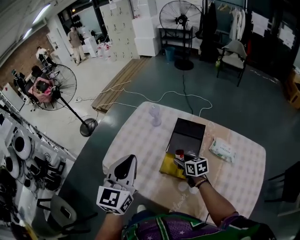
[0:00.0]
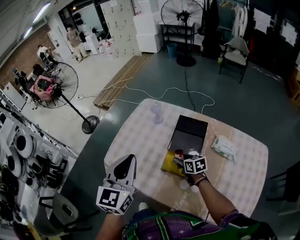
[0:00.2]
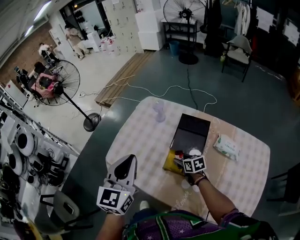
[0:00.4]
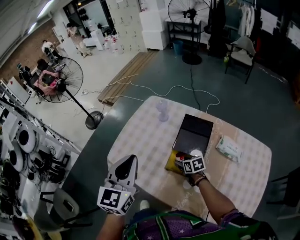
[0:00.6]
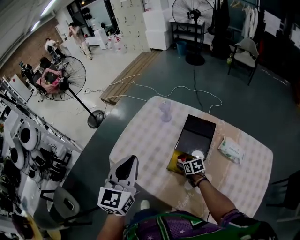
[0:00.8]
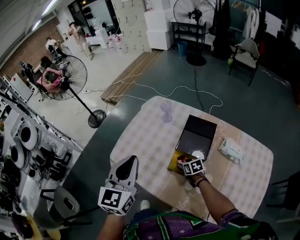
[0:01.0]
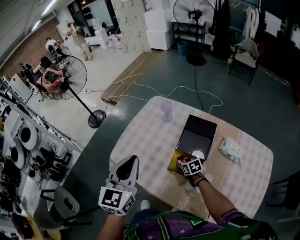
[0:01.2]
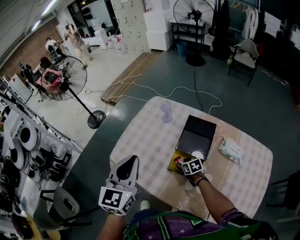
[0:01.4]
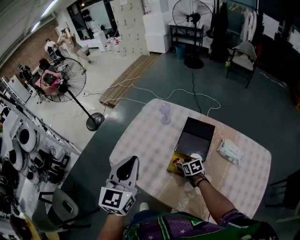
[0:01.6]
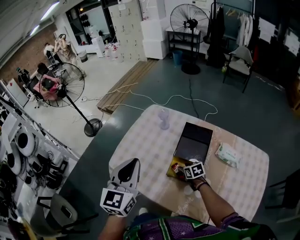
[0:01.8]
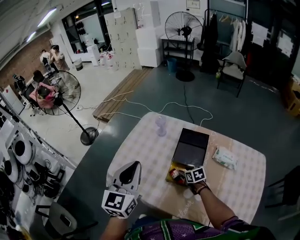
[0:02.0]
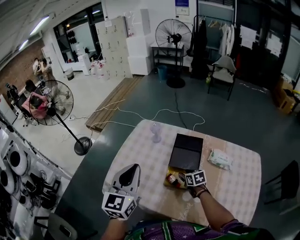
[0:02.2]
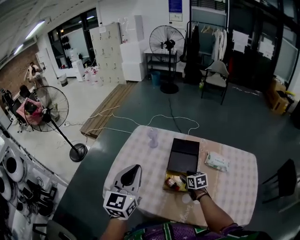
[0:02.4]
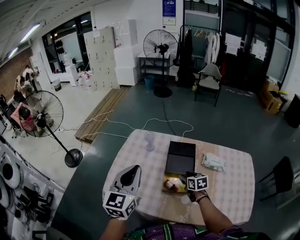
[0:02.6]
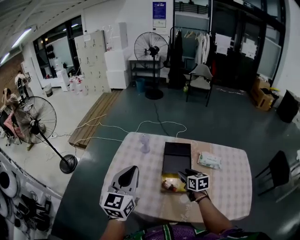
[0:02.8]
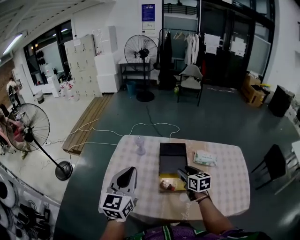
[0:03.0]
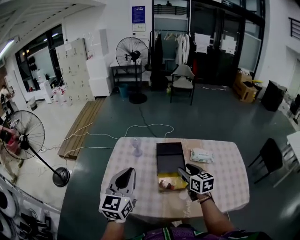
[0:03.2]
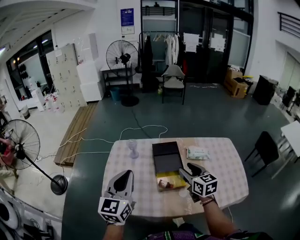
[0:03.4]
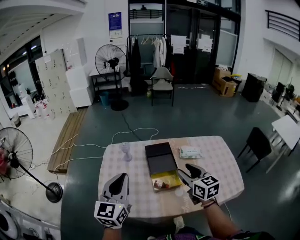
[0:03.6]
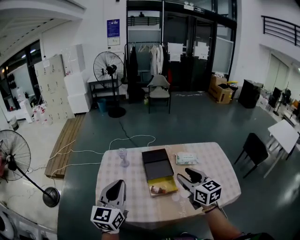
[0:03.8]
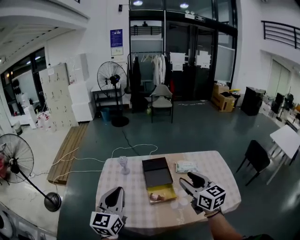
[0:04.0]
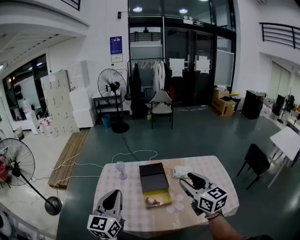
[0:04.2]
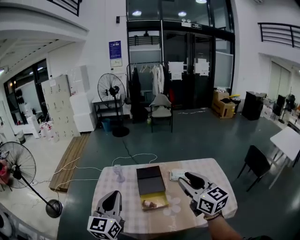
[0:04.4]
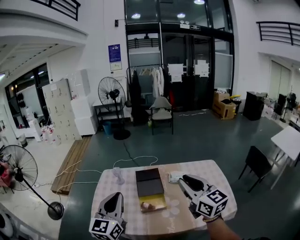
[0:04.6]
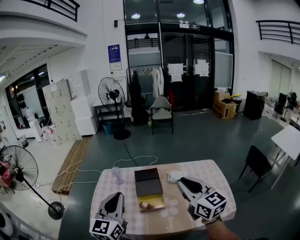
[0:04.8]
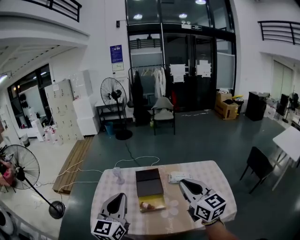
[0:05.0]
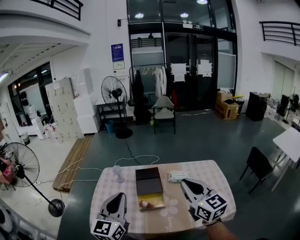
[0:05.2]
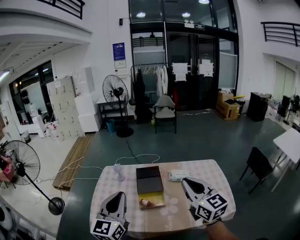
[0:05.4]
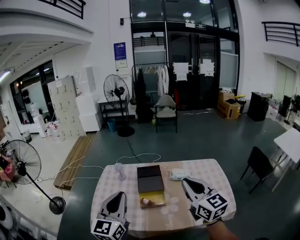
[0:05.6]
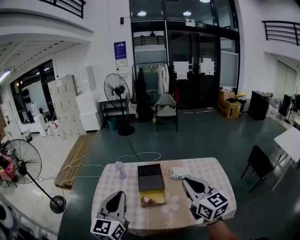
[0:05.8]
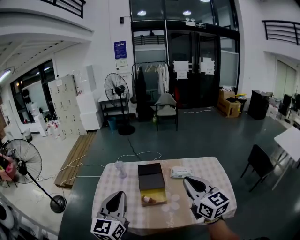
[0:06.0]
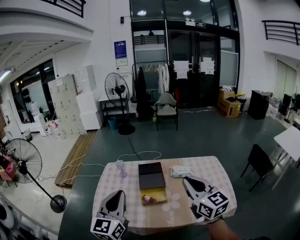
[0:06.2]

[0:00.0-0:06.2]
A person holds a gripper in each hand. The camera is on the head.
0:00.0 to 0:01.6: The right gripper moves downward, some 10 cm.
0:01.6 to 0:03.2: The left gripper ends up approximately 5 cm from where it was, and swivels approximately 30 degrees, while the right gripper heads upward, covering approximately 25 cm, and changes its angle by some 50 degrees.
0:03.2 to 0:04.6: The right gripper is displaced upward, backward and to the right by some 30 cm, swivels roughly 30 degrees, and closes its fingers. The left gripper moves backward, to the right and upward, some 15 cm.
0:04.6 to 0:06.2: The left gripper is displaced backward by some 5 cm.

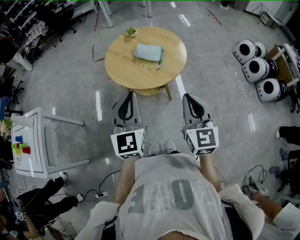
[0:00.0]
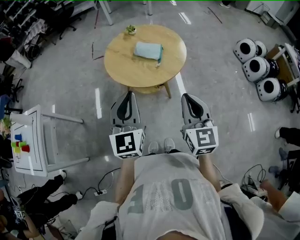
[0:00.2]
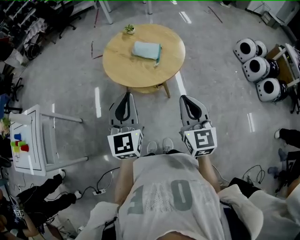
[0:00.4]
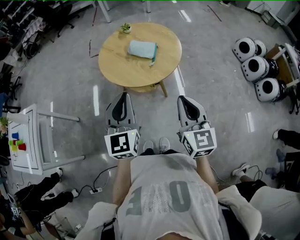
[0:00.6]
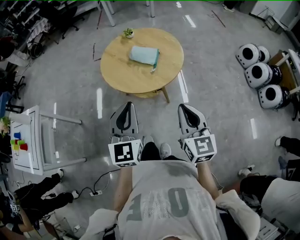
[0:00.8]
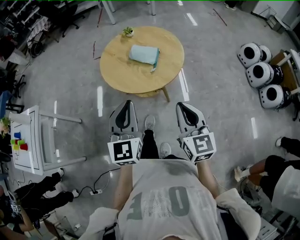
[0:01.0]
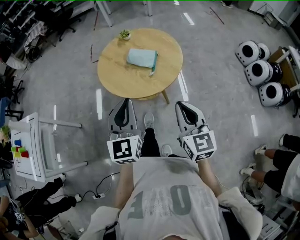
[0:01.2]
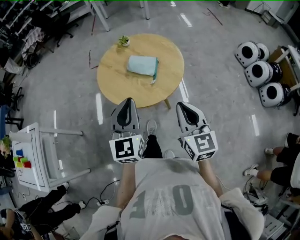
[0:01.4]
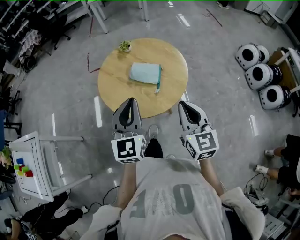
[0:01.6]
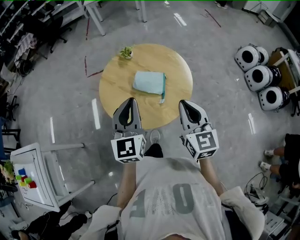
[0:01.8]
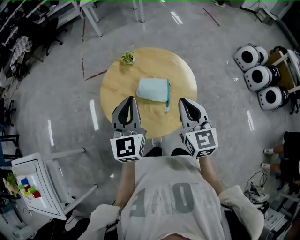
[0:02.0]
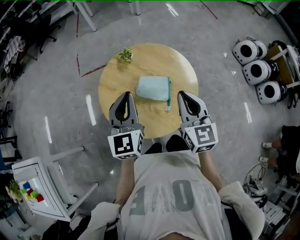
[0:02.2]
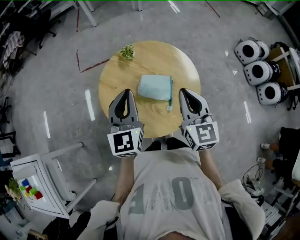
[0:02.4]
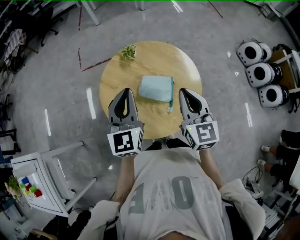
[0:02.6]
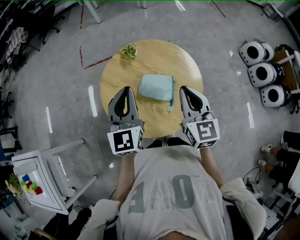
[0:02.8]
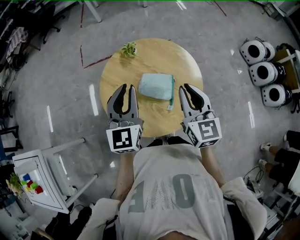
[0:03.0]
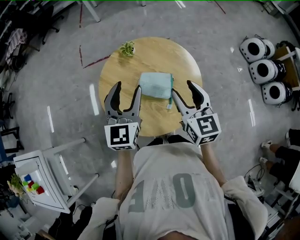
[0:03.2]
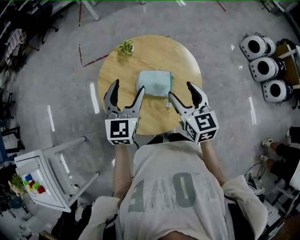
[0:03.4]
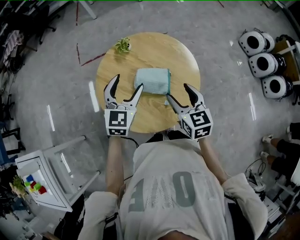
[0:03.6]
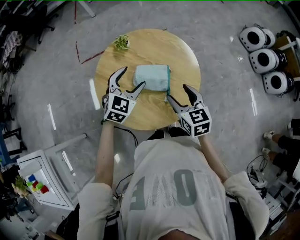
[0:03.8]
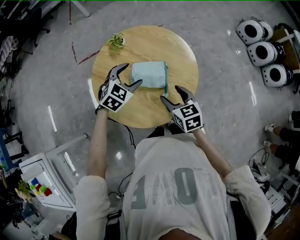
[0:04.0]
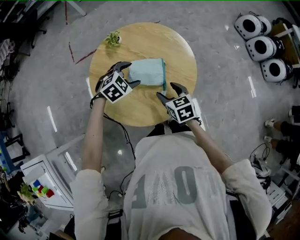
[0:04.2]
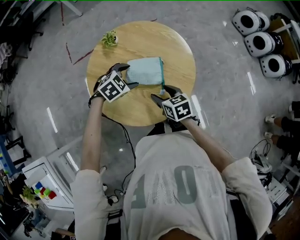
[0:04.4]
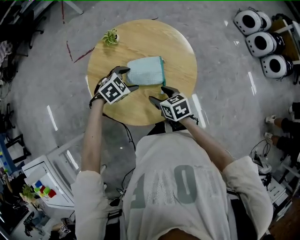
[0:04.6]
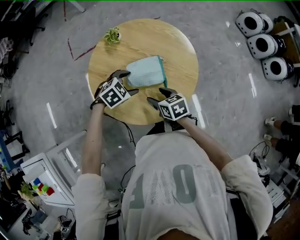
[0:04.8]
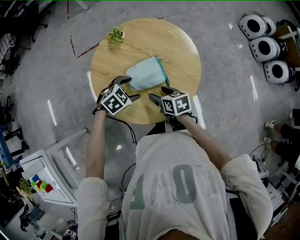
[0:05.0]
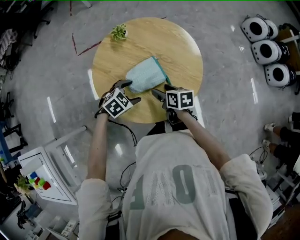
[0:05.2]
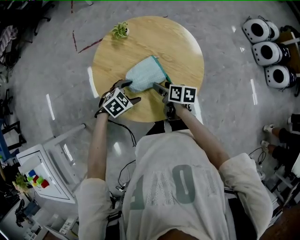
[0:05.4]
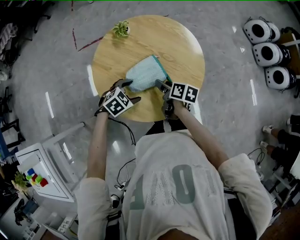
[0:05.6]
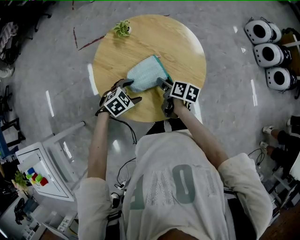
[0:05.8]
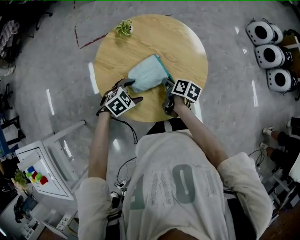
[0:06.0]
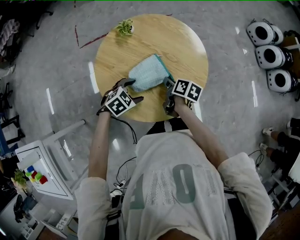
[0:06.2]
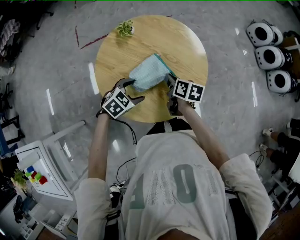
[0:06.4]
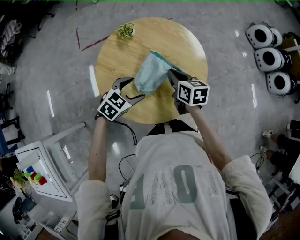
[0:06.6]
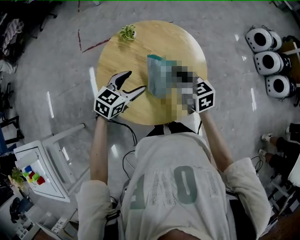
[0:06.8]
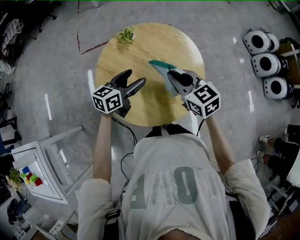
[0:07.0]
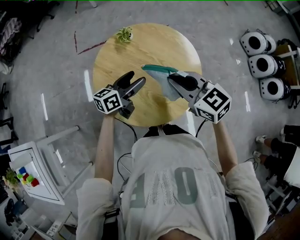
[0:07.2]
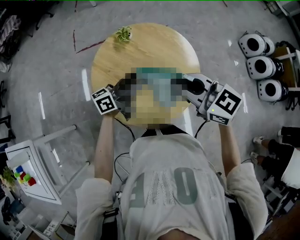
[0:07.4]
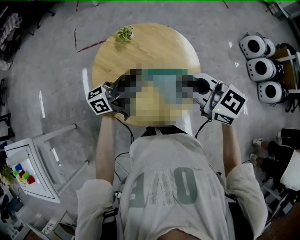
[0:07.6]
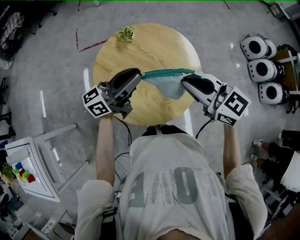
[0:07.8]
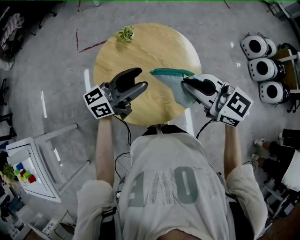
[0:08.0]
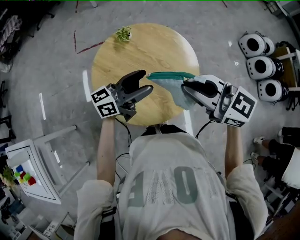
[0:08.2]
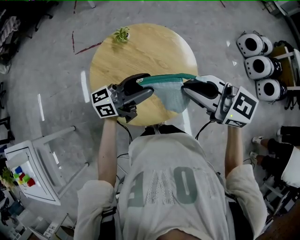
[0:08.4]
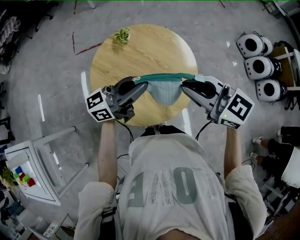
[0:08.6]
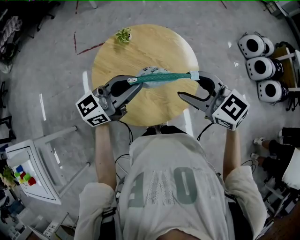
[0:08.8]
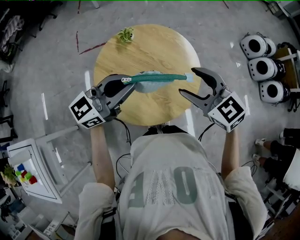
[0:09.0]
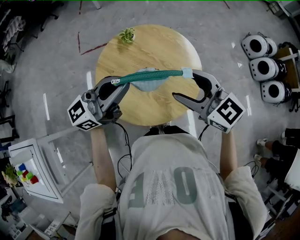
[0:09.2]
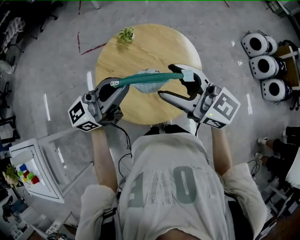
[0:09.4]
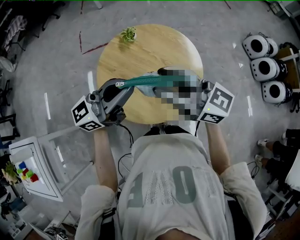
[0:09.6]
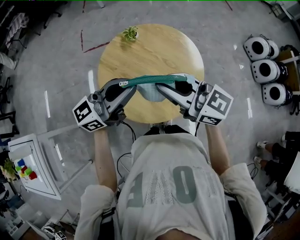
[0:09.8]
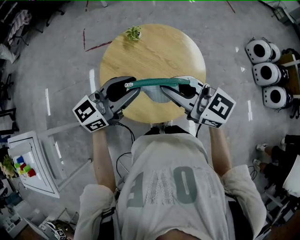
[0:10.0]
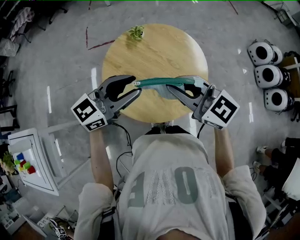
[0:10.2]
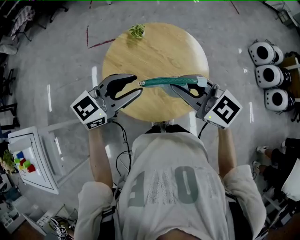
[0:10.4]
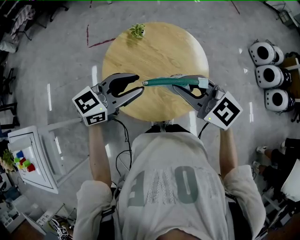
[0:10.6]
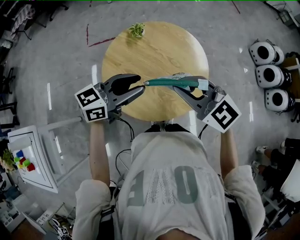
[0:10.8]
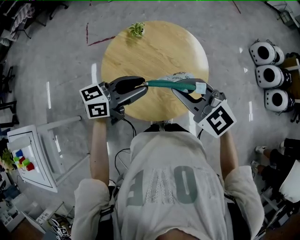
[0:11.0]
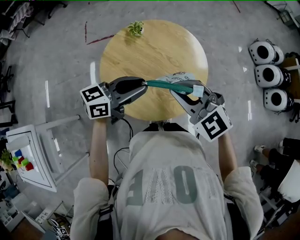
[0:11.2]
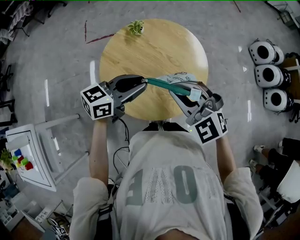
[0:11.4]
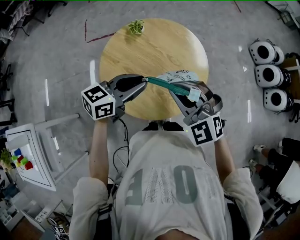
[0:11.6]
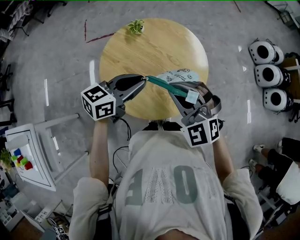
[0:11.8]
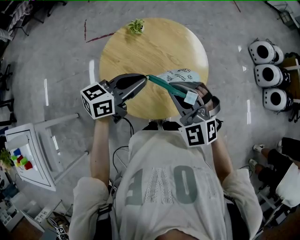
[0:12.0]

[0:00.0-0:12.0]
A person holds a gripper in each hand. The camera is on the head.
0:00.0 to 0:01.6: Both grippers travel together forward, approximately 20 cm.
0:01.6 to 0:03.0: The two grippers go about 20 cm forward.
0:03.0 to 0:04.4: Both grippers move downward, some 25 cm. The right gripper tips its fingers downward by roughly 30 degrees, and opens up. The left gripper tips its fingers downward by about 50 degrees, and opens its fingers.
0:04.4 to 0:06.0: The right gripper shifts about 5 cm downward and forward, rolls clockwise, seen from behind, by about 50 degrees, and closes its fingers. The left gripper heads backward, covering about 10 cm.
0:06.0 to 0:07.6: Both grippers travel together upward, roughly 25 cm. The right gripper rotates around the line of its fingers by approximately 80 degrees, counterclockwise from behind, while the left gripper tips its fingers upward by some 80 degrees.
0:07.6 to 0:09.0: The right gripper opens up. The left gripper travels upward by approximately 5 cm, rotates some 40 degrees, and closes up.
0:09.0 to 0:10.4: The right gripper ends up about 10 cm from where it was, turns by some 20 degrees, and closes its fingers.
0:10.4 to 0:12.0: The left gripper heads downward, covering about 5 cm, and changes its angle by some 20 degrees; the right gripper turns by approximately 40 degrees.

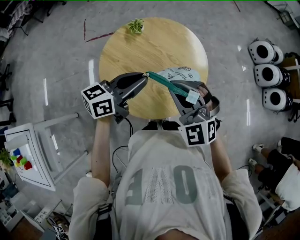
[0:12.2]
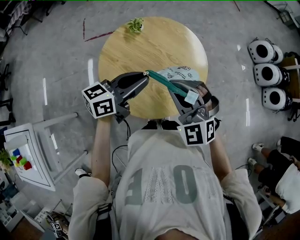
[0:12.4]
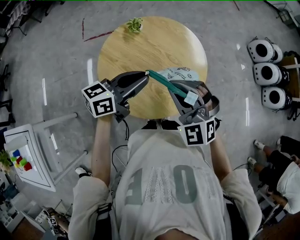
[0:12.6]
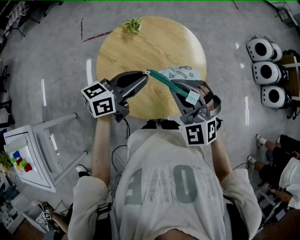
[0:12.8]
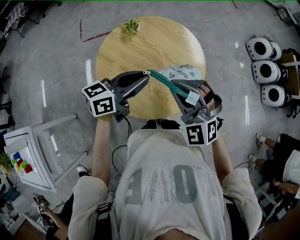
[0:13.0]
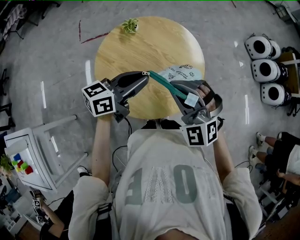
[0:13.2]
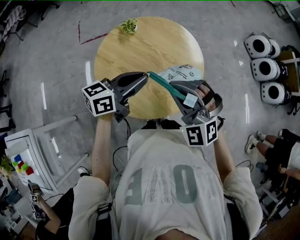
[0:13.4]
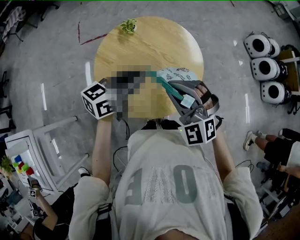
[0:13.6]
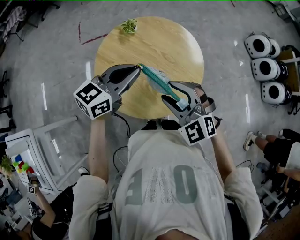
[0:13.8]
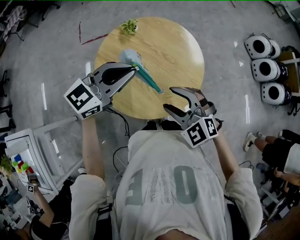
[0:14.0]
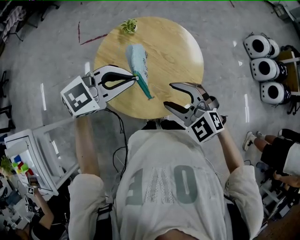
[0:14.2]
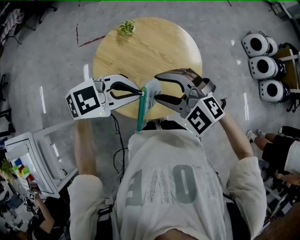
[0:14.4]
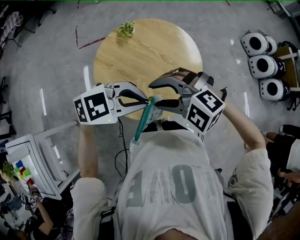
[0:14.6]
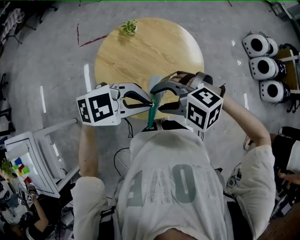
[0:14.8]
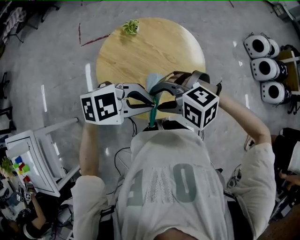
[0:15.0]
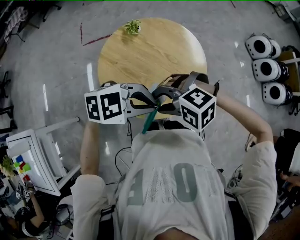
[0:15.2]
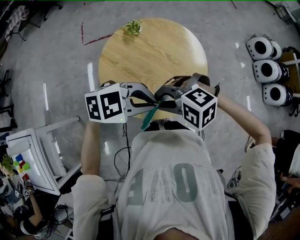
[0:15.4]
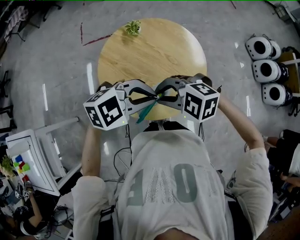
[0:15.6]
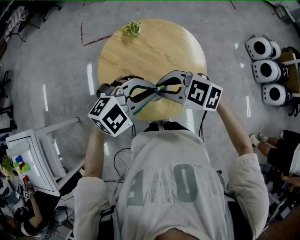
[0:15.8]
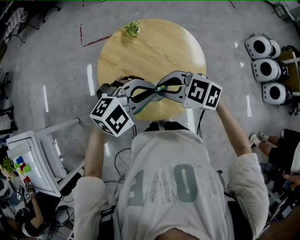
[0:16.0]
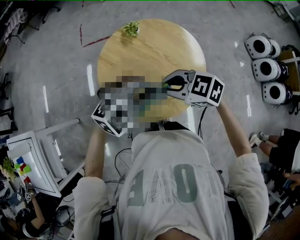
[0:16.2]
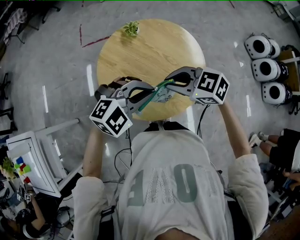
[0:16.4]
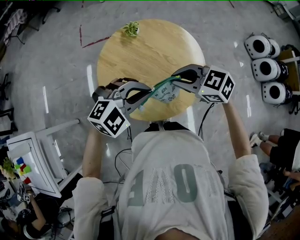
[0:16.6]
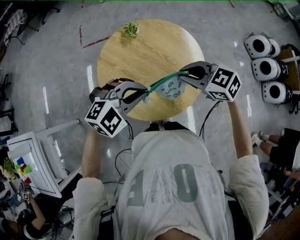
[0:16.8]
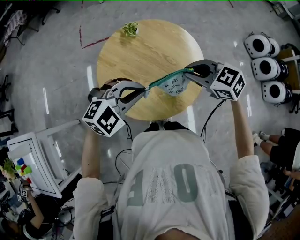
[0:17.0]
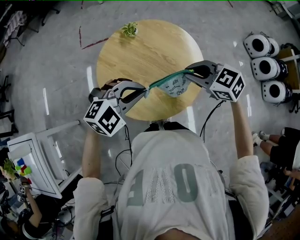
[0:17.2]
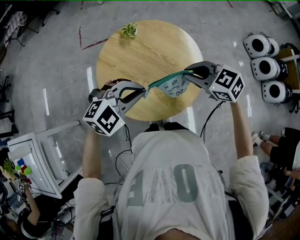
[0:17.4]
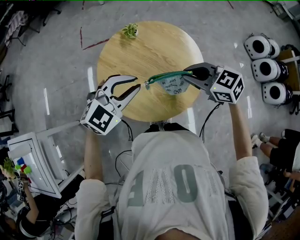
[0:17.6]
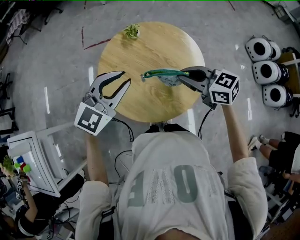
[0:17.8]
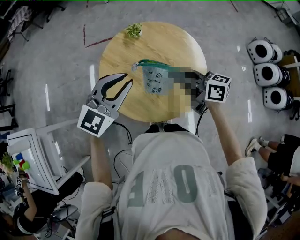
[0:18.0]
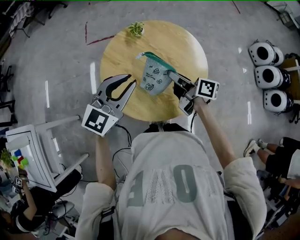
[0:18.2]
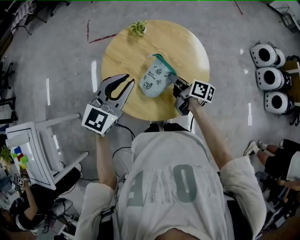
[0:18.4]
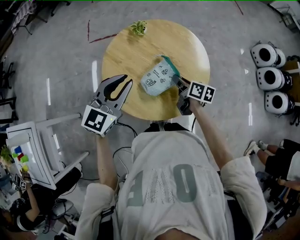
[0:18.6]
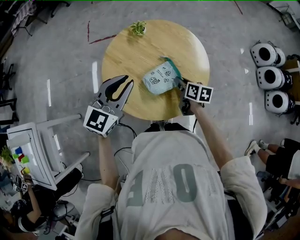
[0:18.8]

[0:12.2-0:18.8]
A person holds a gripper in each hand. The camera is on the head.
0:12.2 to 0:13.8: The right gripper opens.
0:13.8 to 0:15.4: The left gripper moves some 15 cm, and changes its angle by approximately 50 degrees, while the right gripper shifts by some 5 cm, changes its angle by roughly 50 degrees, and closes its fingers.
0:15.4 to 0:17.2: The left gripper shifts by approximately 5 cm, and rotates about 30 degrees. The right gripper shifts by about 15 cm, and rolls clockwise, seen from behind, by about 50 degrees.
0:17.2 to 0:18.8: The left gripper changes place by roughly 10 cm, and turns by some 50 degrees. The right gripper shifts some 20 cm downward, and rotates around the line of its fingers by roughly 60 degrees, clockwise from behind.
